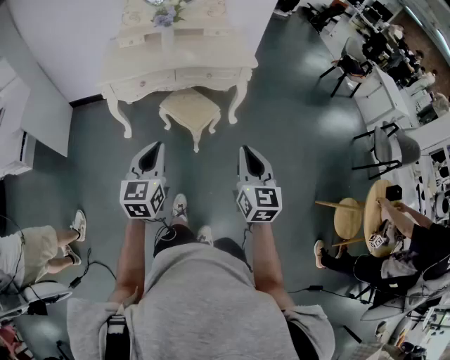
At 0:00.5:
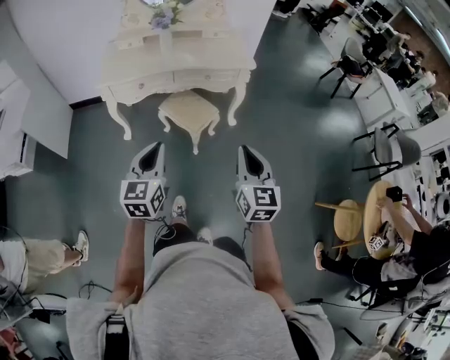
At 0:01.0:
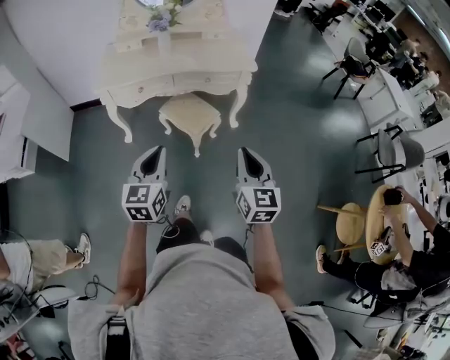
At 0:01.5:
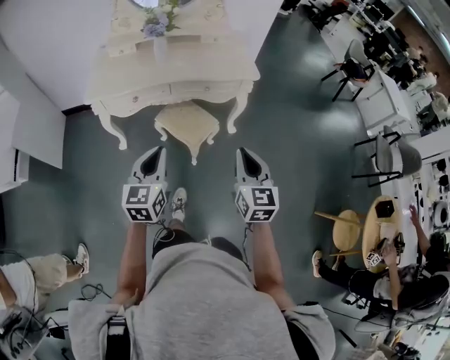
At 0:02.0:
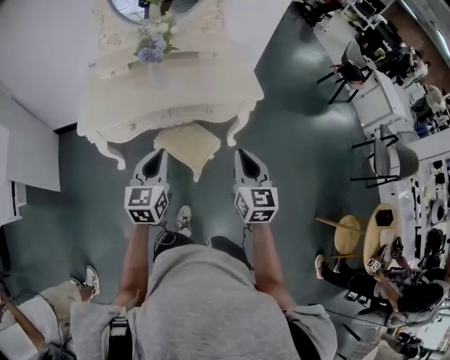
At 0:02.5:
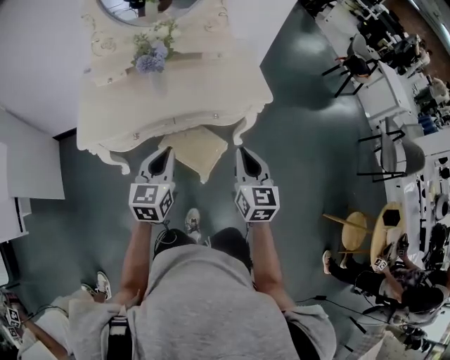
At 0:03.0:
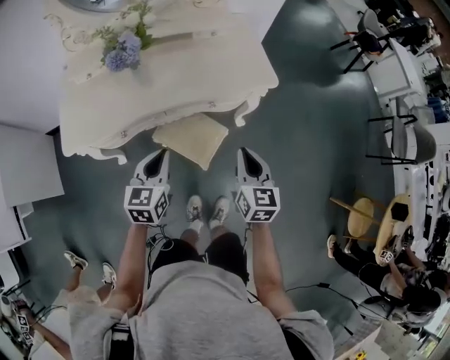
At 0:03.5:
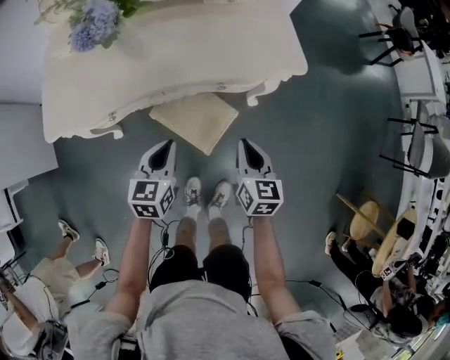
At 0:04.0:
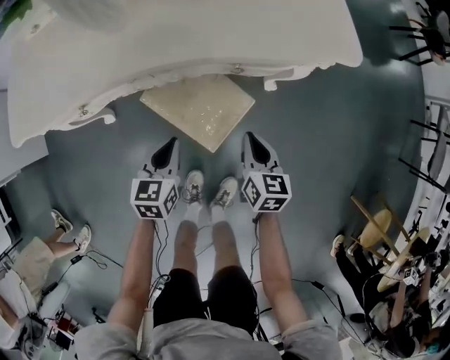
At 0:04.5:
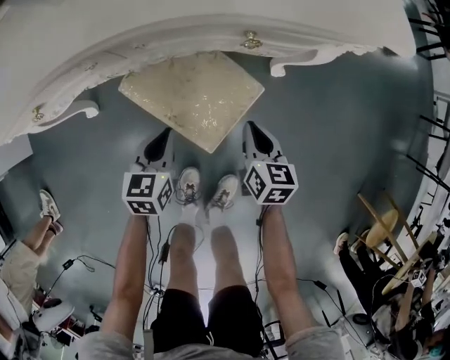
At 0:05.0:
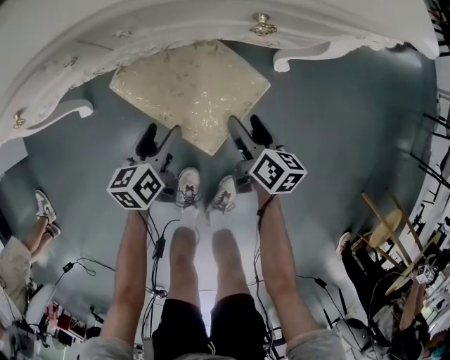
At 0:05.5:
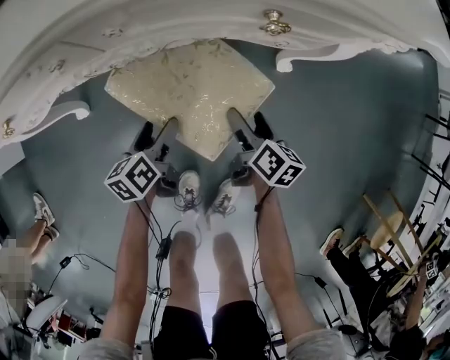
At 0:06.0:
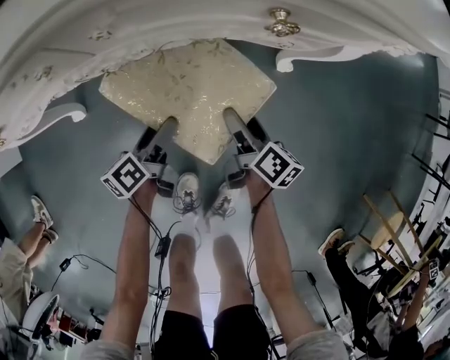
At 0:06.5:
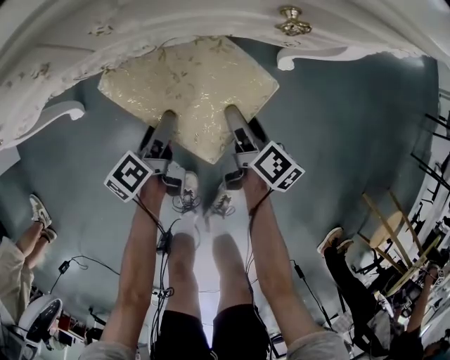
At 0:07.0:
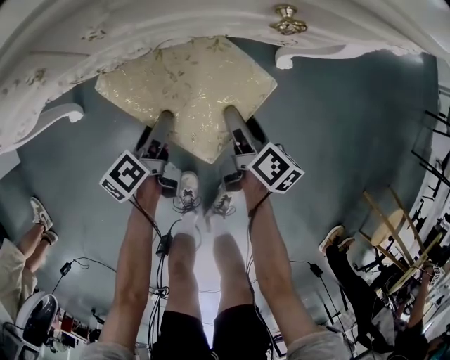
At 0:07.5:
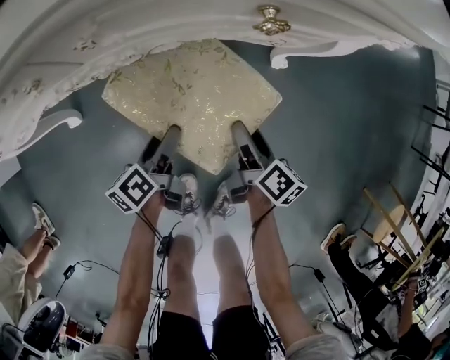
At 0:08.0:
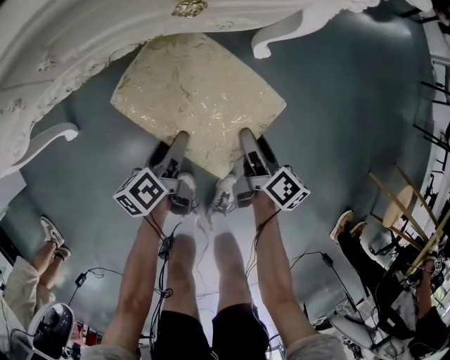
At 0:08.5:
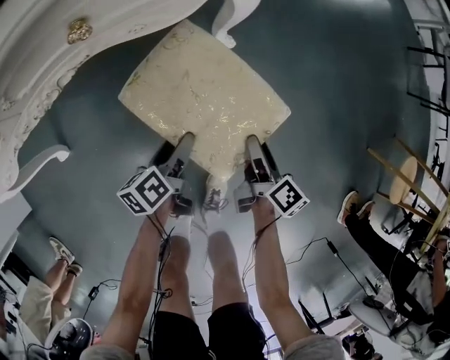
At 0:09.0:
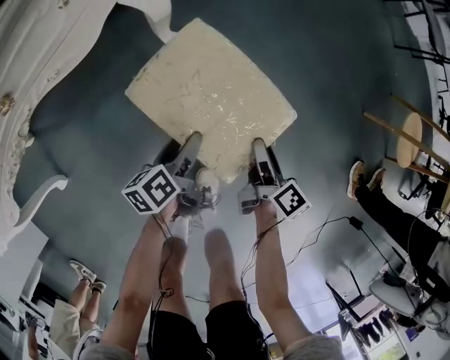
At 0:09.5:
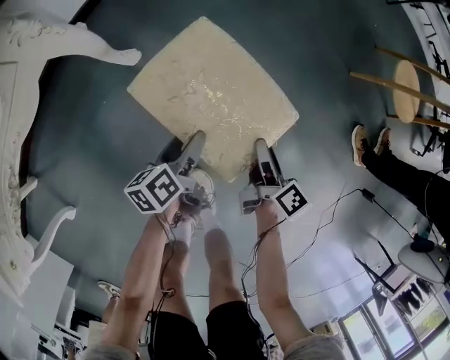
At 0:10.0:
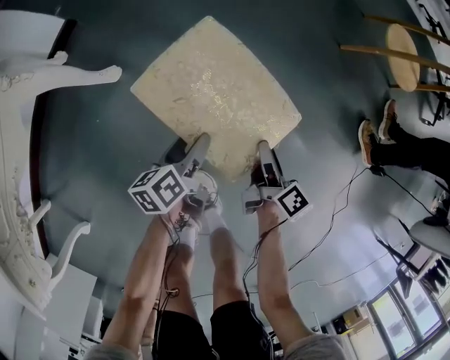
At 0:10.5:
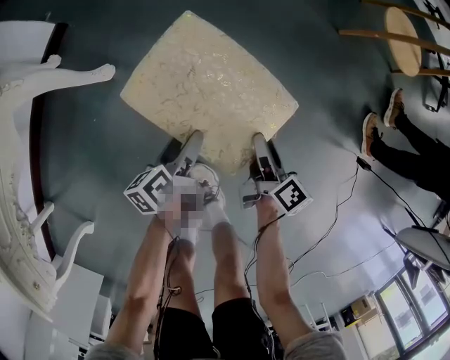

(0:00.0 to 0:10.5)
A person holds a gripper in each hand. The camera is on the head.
0:00.0 - 0:02.0: Both grippers move forward, approximately 30 cm.
0:02.0 - 0:04.0: The grippers both shift downward and forward by approximately 40 cm. The right gripper changes its angle by some 30 degrees. Meanwhile the left gripper rotates about 30 degrees.
0:04.0 - 0:06.5: The grippers both shift downward by some 25 cm. The right gripper rotates around the line of its fingers by about 40 degrees, clockwise from behind, and opens; the left gripper rotates around the line of its fingers by approximately 60 degrees, counterclockwise from behind, and opens.
0:06.5 - 0:08.5: The right gripper heads to the right and backward, covering roughly 20 cm, and swivels some 20 degrees. Meanwhile the left gripper heads to the right, covering about 15 cm, and swivels about 30 degrees.

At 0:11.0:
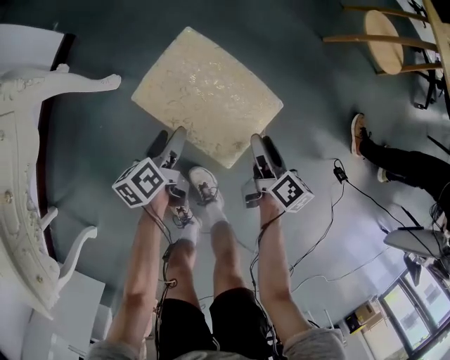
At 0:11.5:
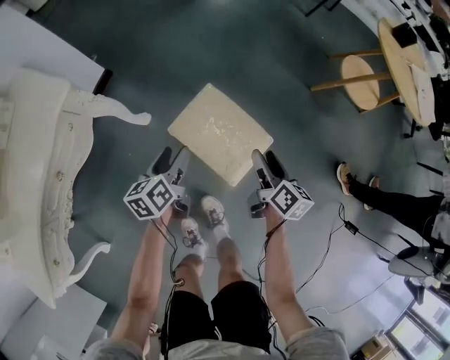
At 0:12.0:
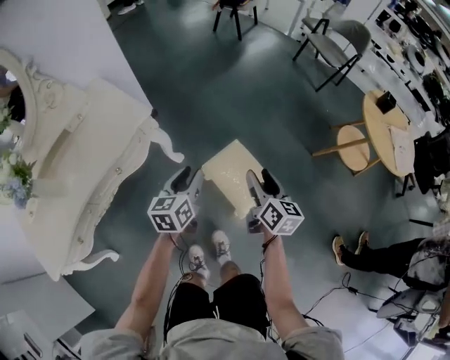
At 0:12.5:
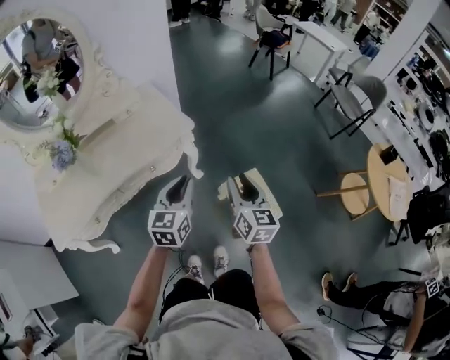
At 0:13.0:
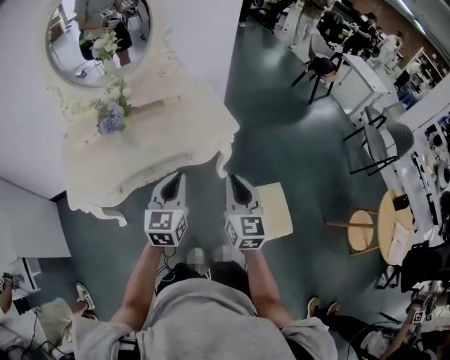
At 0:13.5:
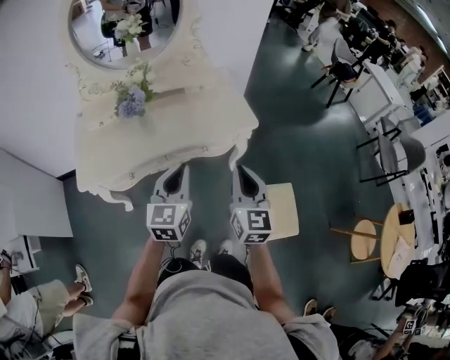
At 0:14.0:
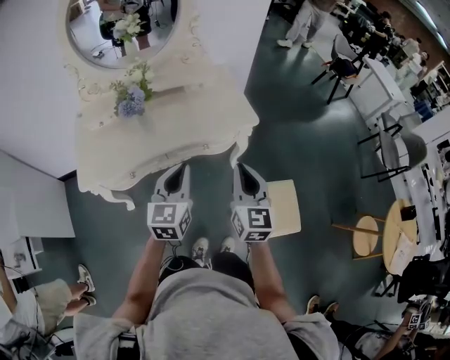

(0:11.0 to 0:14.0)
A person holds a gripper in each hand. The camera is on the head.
0:11.0 - 0:12.5: Both grippers move upward, roughly 60 cm. The right gripper rolls counterclockwise, seen from behind, by about 50 degrees, and closes up, while the left gripper changes its angle by approximately 50 degrees, and closes.
0:12.5 - 0:14.0: The two grippers go approximately 20 cm to the left and upward. The left gripper turns by some 20 degrees, while the right gripper changes its angle by roughly 20 degrees.

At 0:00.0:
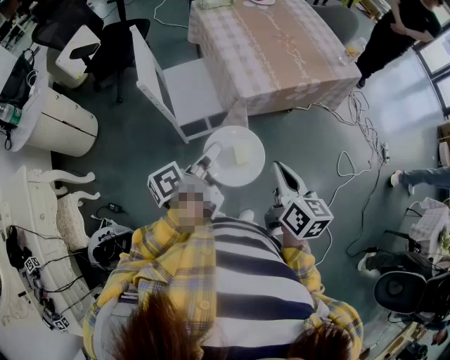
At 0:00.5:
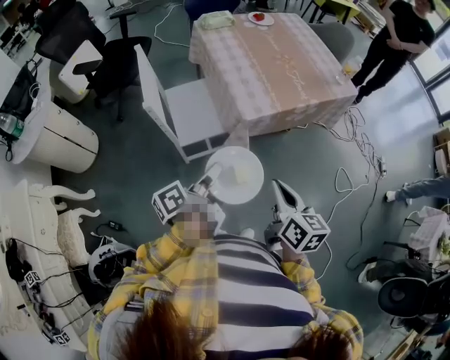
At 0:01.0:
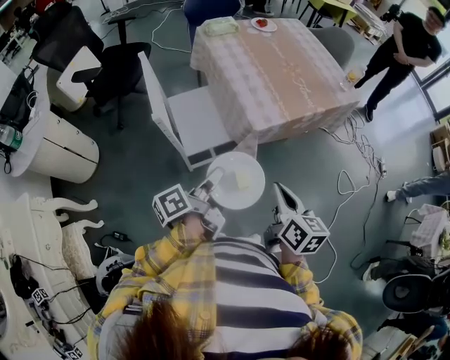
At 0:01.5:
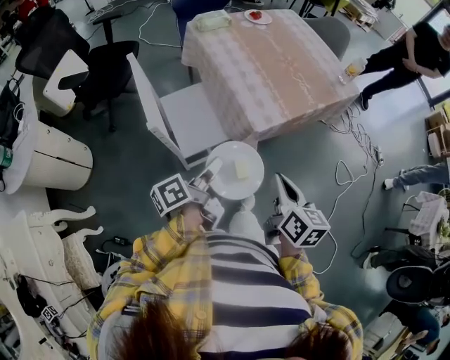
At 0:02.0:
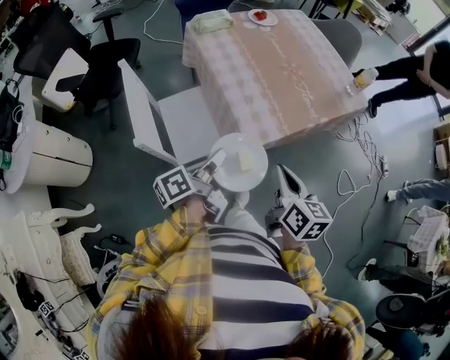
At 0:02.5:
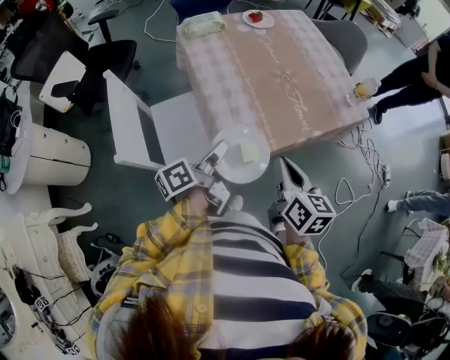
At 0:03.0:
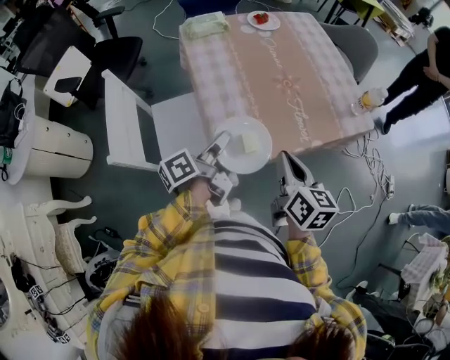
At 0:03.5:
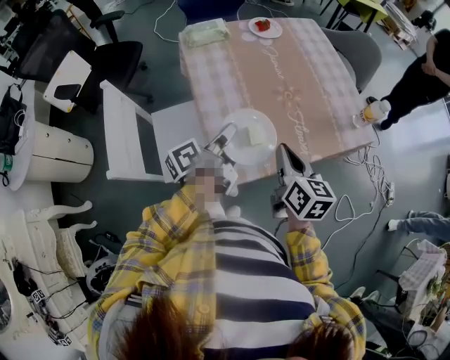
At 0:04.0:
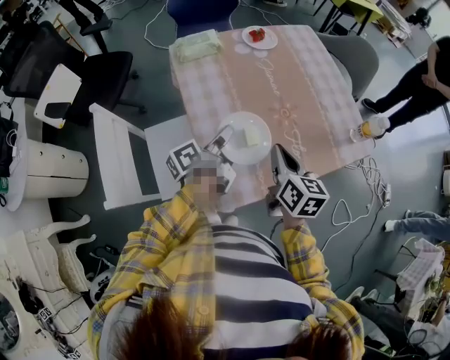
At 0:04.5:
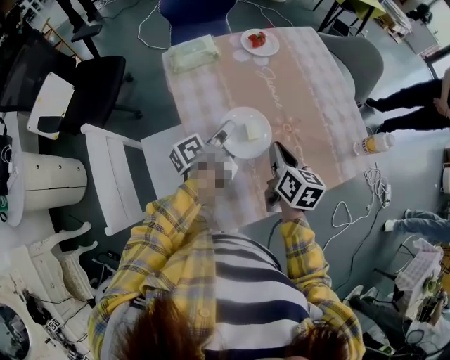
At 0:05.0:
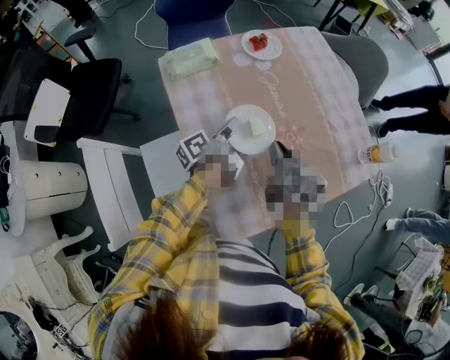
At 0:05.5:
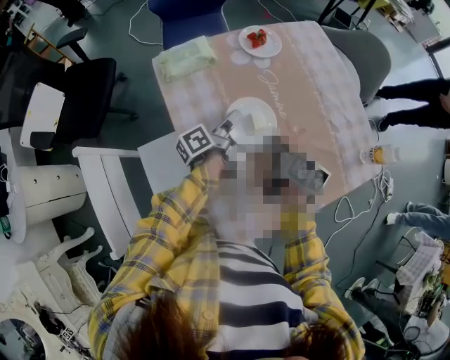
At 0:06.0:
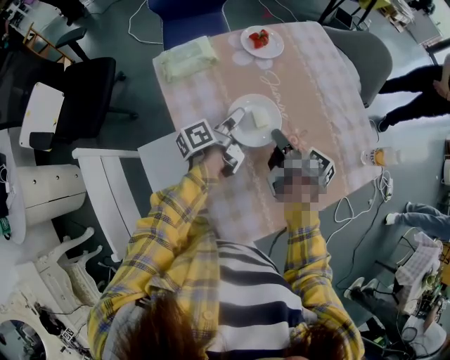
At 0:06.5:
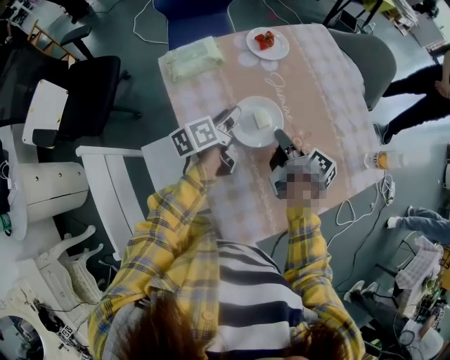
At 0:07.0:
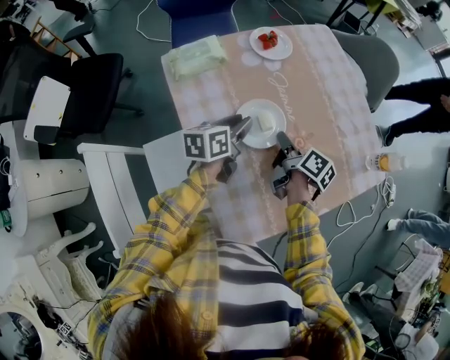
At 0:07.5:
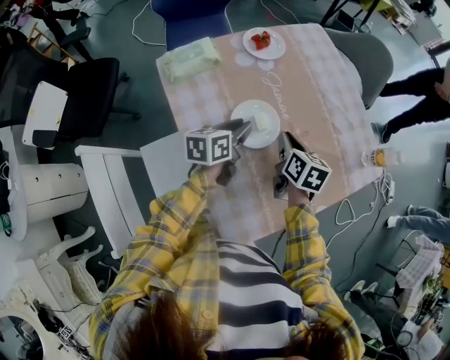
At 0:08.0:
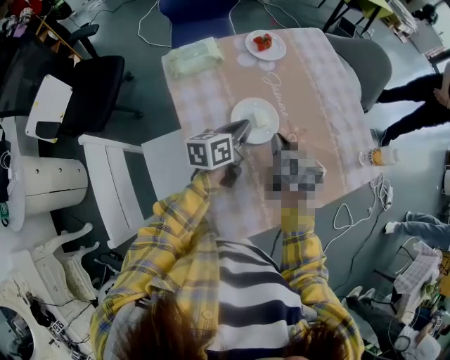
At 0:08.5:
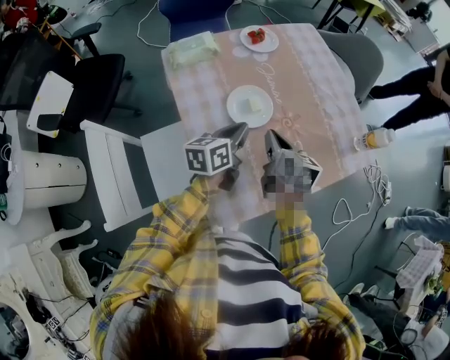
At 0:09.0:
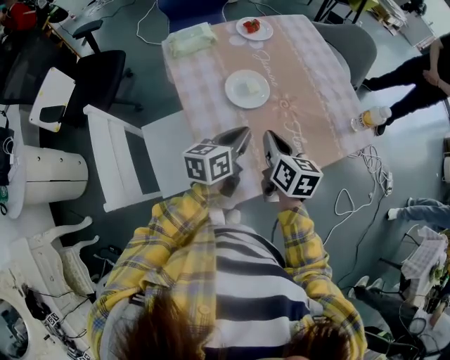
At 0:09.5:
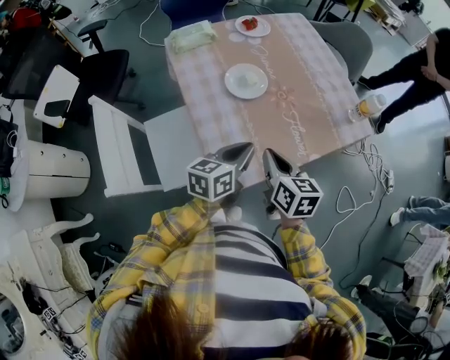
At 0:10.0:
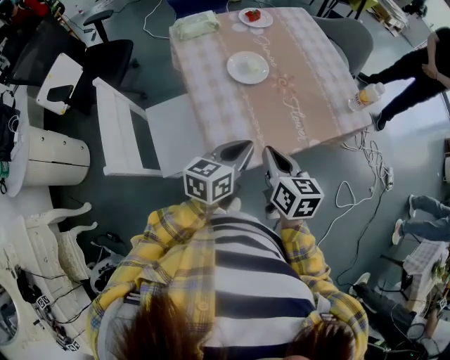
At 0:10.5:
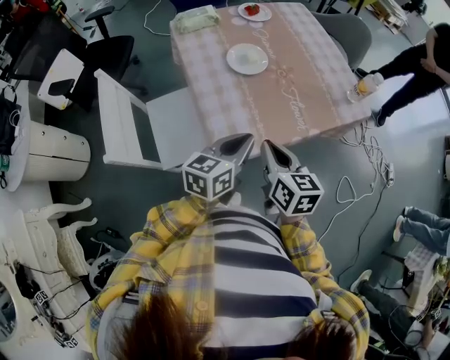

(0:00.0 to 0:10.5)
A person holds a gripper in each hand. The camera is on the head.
0:00.0 - 0:02.0: The two grippers go about 15 cm forward.
0:02.0 - 0:04.0: The grippers both shift forward by some 30 cm.
0:04.0 - 0:06.5: The left gripper shifts approximately 20 cm forward, rotates some 20 degrees, and opens up. The right gripper shifts roughly 20 cm forward and downward, and rolls clockwise, seen from behind, by roughly 50 degrees.
0:06.5 - 0:08.5: The right gripper goes roughly 5 cm backward, and rotates around the line of its fingers by roughly 40 degrees, counterclockwise from behind, while the left gripper shifts approximately 15 cm backward and to the right, rotates roughly 20 degrees, and closes.
0:08.5 - 0:10.5: The grippers both shift backward by approximately 25 cm.

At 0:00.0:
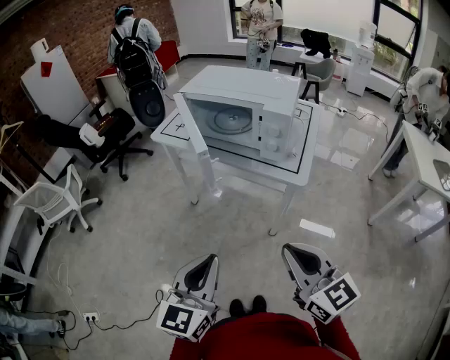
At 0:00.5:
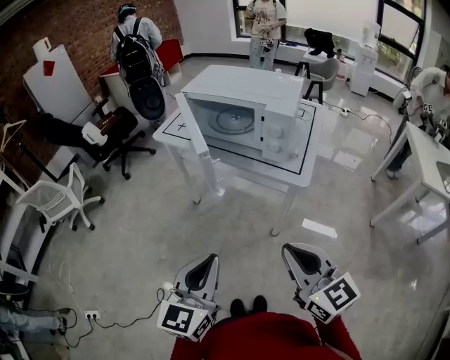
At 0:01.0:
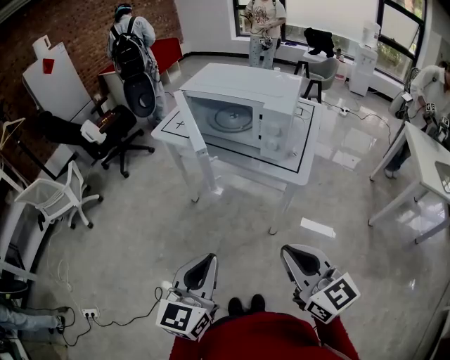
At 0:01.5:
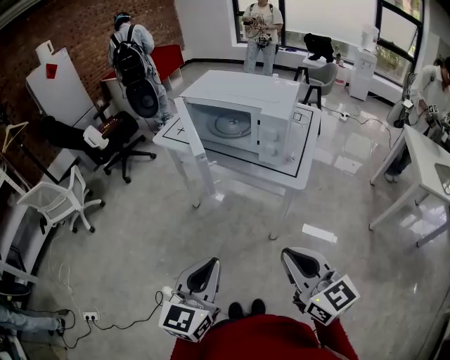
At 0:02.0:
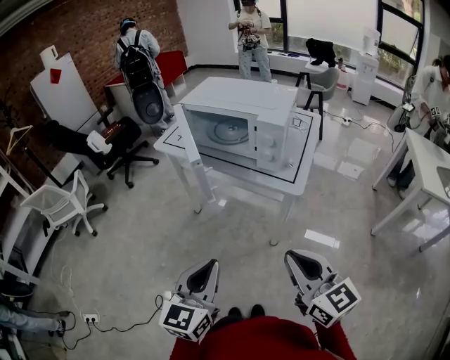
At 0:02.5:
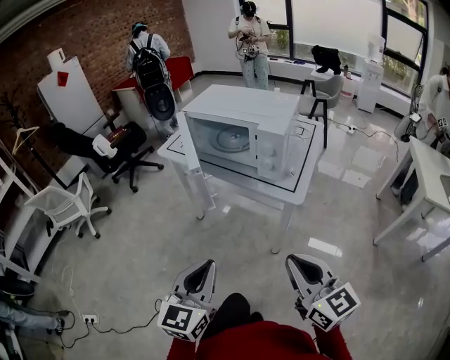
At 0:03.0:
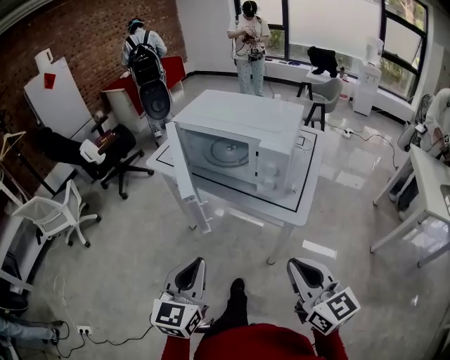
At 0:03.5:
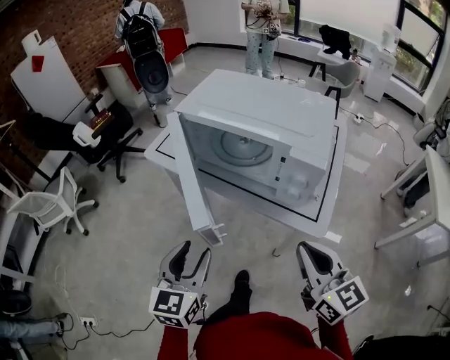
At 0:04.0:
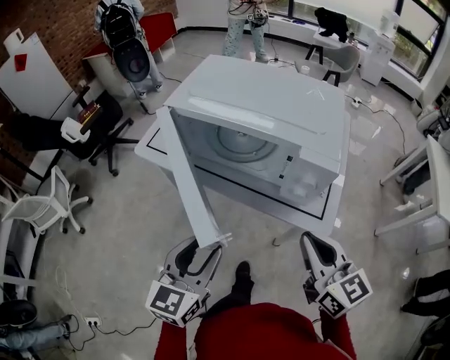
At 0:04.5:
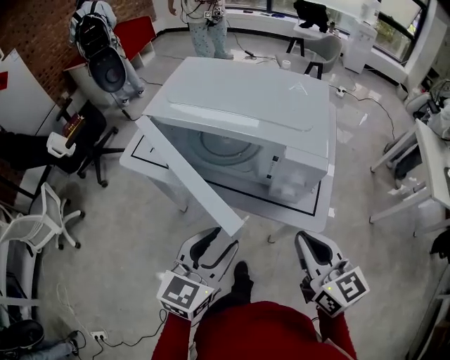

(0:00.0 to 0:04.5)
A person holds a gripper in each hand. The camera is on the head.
0:00.0 - 0:02.0: The grippers make only small movements.
0:02.0 - 0:04.5: Both grippers travel together forward, some 25 cm. The left gripper rotates roughly 20 degrees, and opens up.
